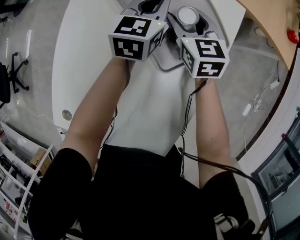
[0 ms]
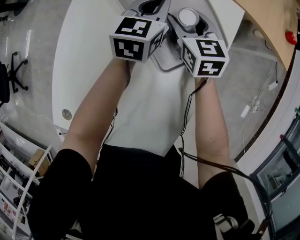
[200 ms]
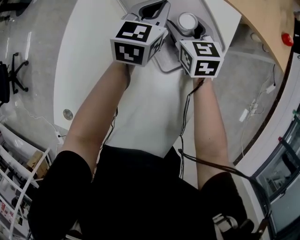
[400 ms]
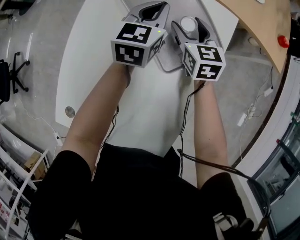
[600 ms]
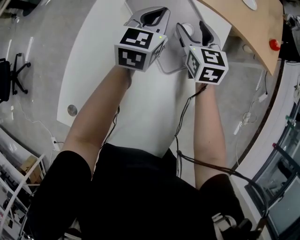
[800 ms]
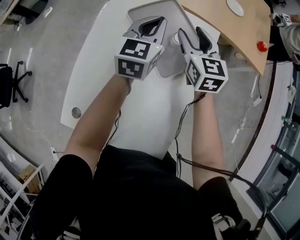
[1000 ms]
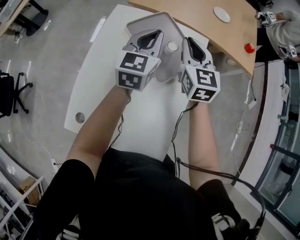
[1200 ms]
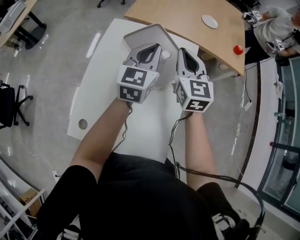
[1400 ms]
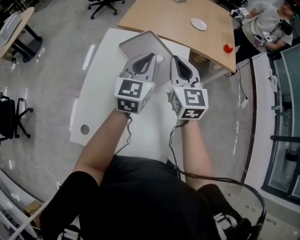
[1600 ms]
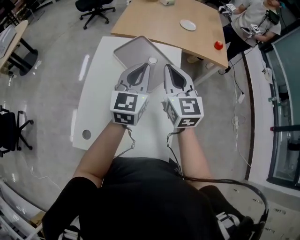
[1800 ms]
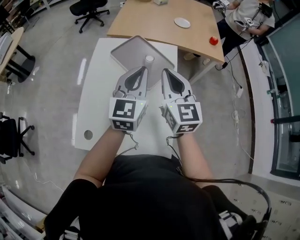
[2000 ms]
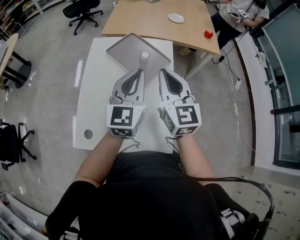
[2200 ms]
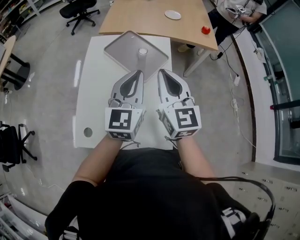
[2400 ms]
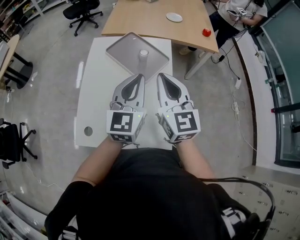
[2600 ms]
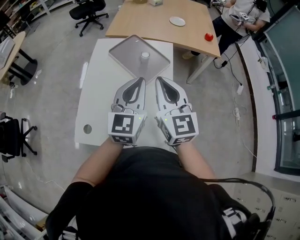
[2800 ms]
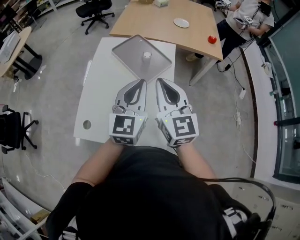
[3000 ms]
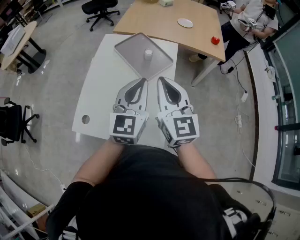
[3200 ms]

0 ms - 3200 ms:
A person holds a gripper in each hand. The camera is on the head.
0 ms - 1600 ms: Both grippers move upward and backward, roughly 40 cm. The right gripper changes its angle by roughly 30 degrees, and closes up.
1600 ms - 3200 ms: The grippers both shift backward by some 20 cm.
